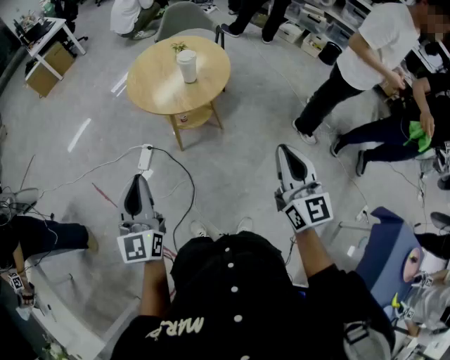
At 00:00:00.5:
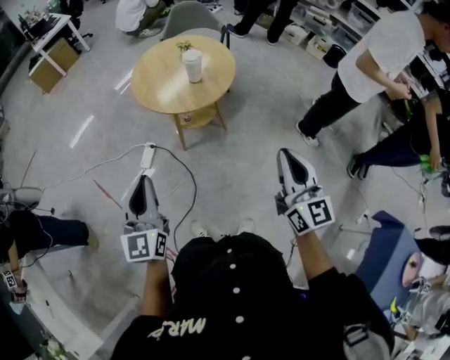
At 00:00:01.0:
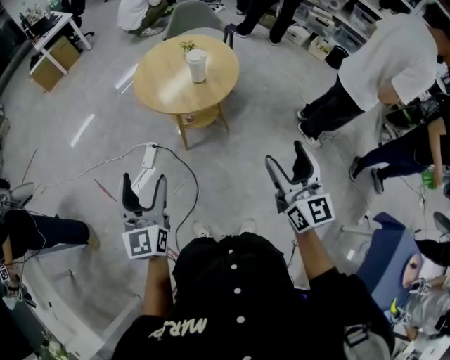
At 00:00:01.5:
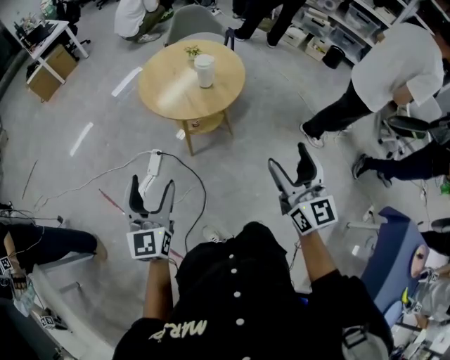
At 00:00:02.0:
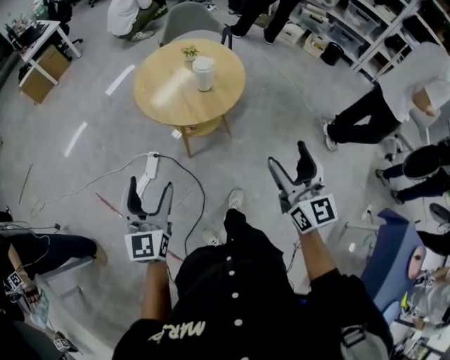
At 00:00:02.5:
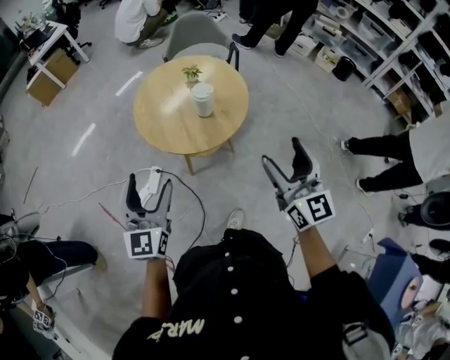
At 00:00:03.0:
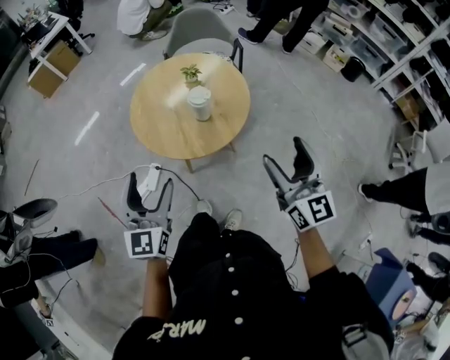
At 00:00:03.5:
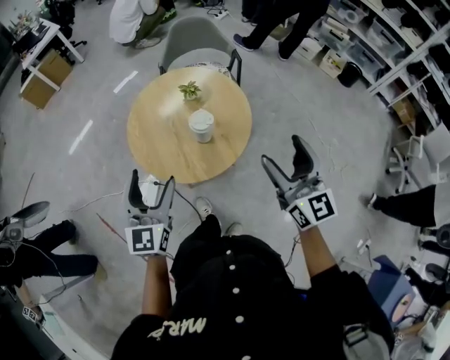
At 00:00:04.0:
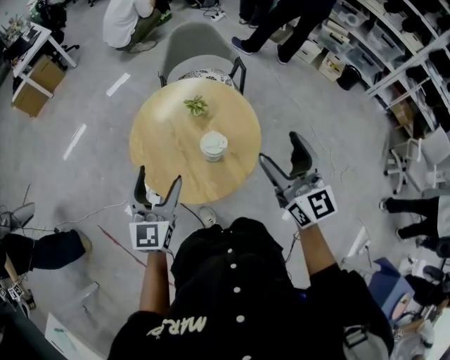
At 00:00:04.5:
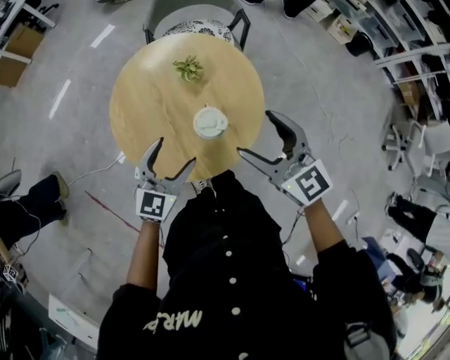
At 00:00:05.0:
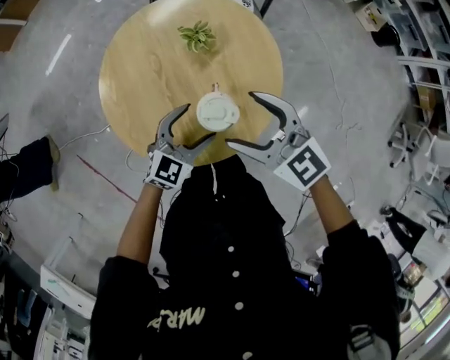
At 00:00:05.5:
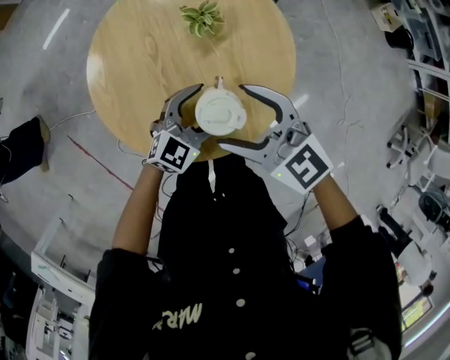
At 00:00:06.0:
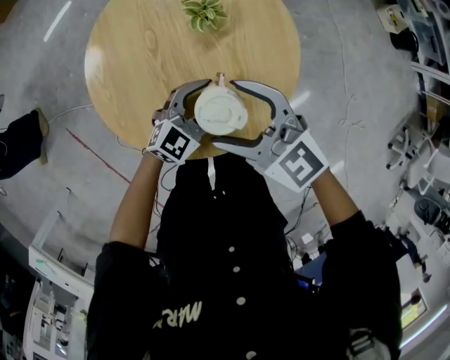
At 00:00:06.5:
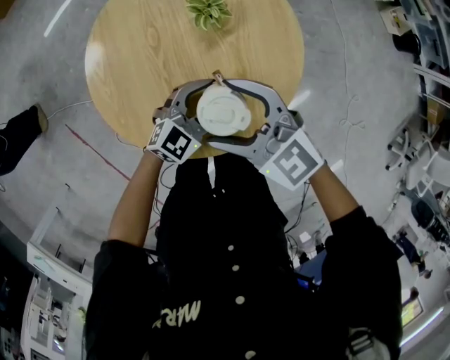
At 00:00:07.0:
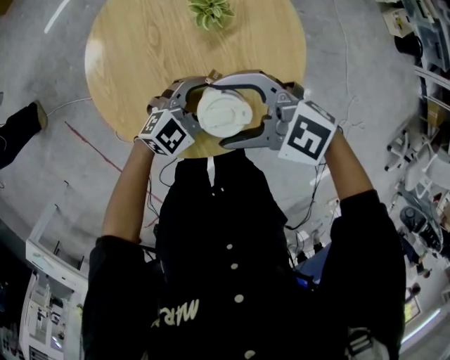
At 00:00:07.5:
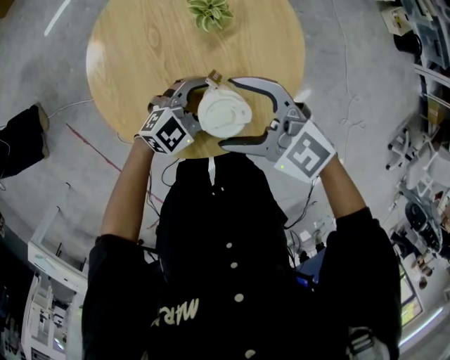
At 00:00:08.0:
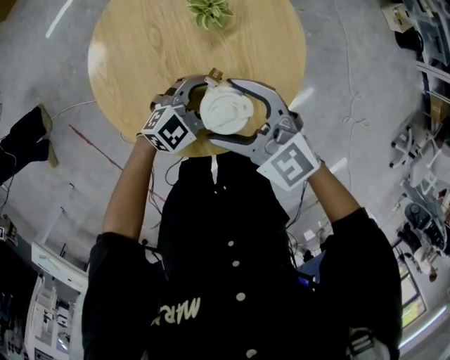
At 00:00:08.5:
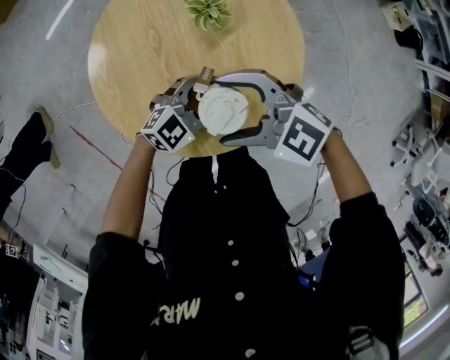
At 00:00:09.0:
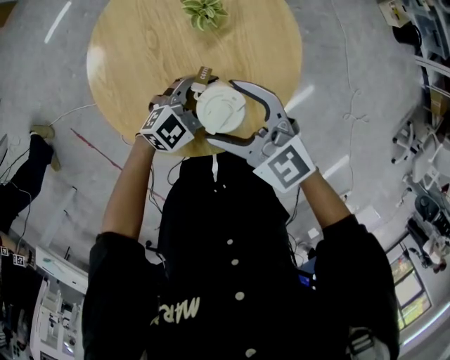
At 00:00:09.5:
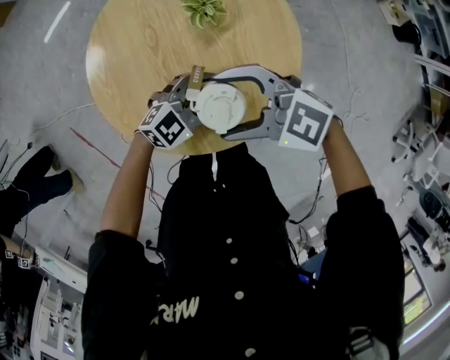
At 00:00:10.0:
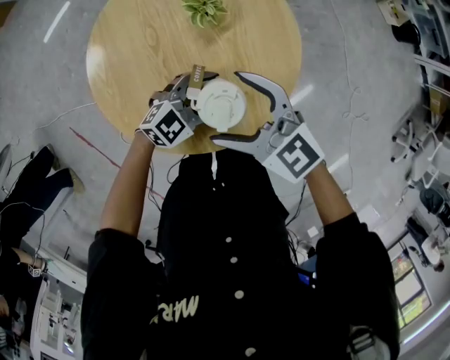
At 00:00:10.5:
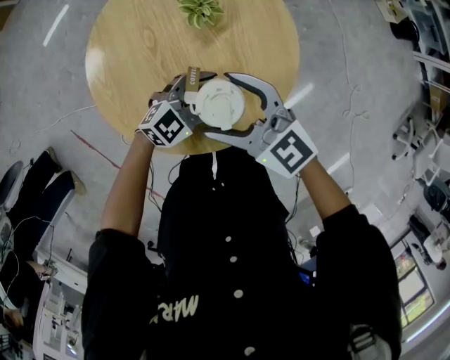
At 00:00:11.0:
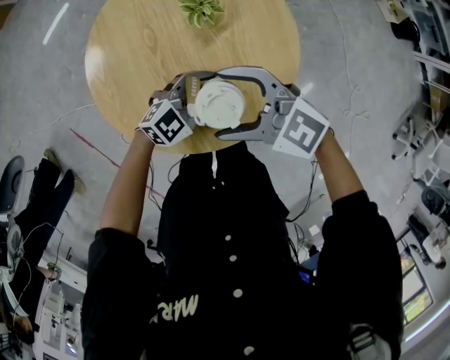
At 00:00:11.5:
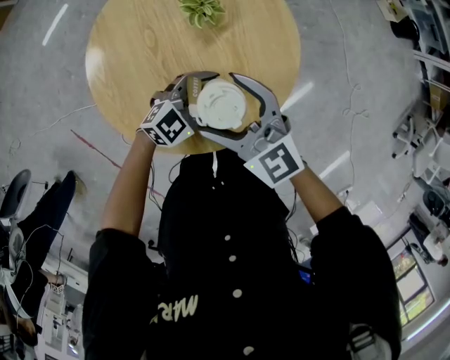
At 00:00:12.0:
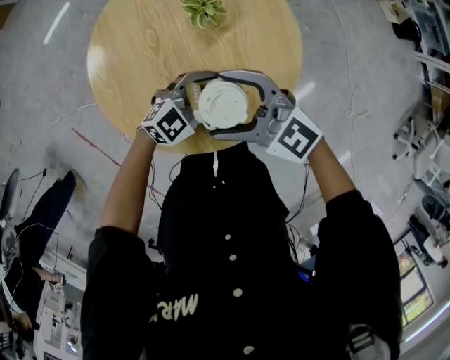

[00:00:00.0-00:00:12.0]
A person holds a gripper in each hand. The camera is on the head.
00:00:00.0 to 00:00:02.0: The right gripper shifts some 10 cm forward and to the left, and opens its fingers. Meanwhile the left gripper moves forward, to the left and downward, about 15 cm, and opens up.
00:00:02.0 to 00:00:04.0: The pair of grippers is taken forward, some 40 cm.
00:00:04.0 to 00:00:06.0: The left gripper heads downward and to the right, covering about 40 cm, and rotates roughly 40 degrees, while the right gripper heads downward, to the left and forward, covering roughly 35 cm, and swivels roughly 50 degrees.
00:00:10.0 to 00:00:12.0: The right gripper changes its angle by approximately 20 degrees.

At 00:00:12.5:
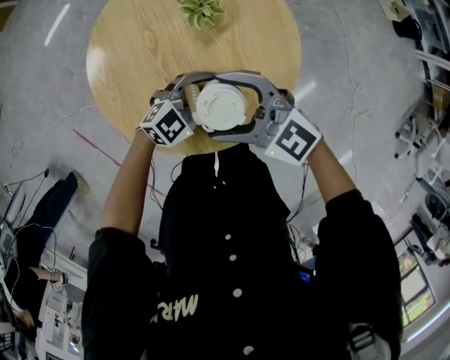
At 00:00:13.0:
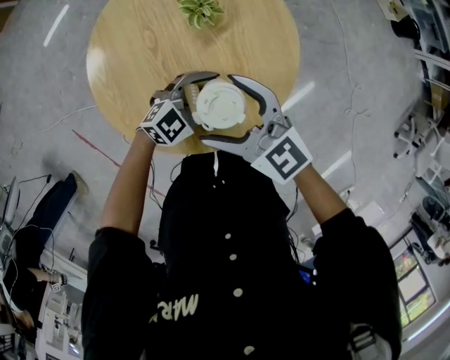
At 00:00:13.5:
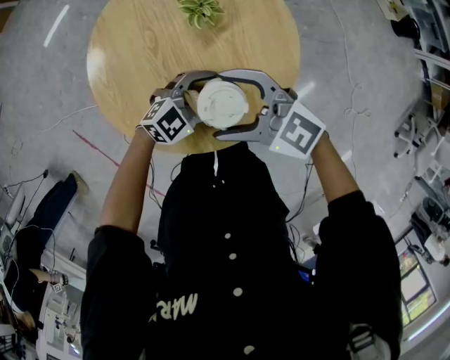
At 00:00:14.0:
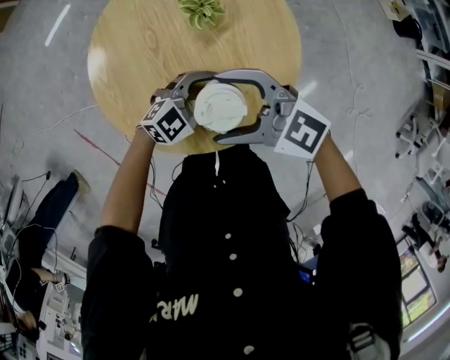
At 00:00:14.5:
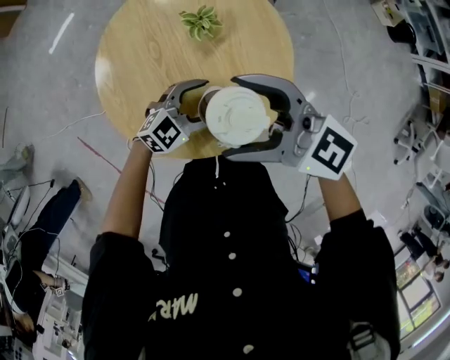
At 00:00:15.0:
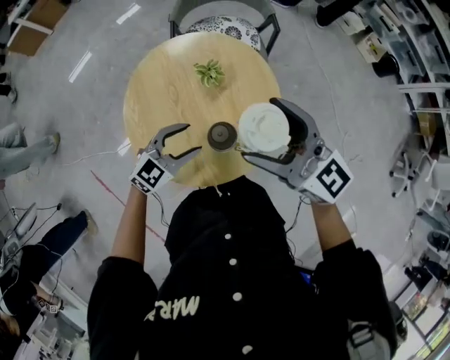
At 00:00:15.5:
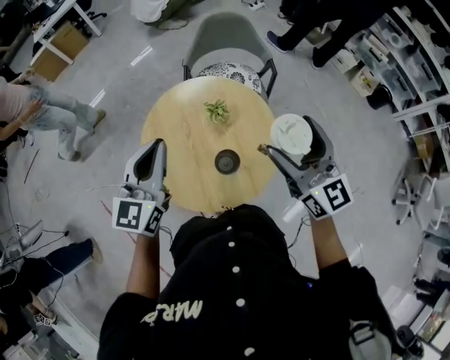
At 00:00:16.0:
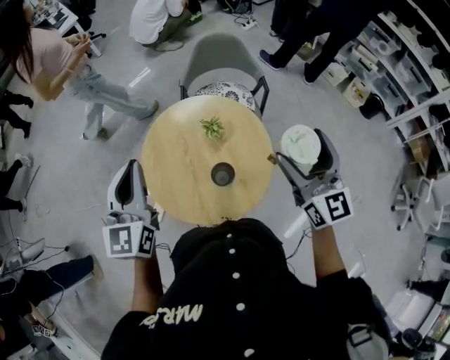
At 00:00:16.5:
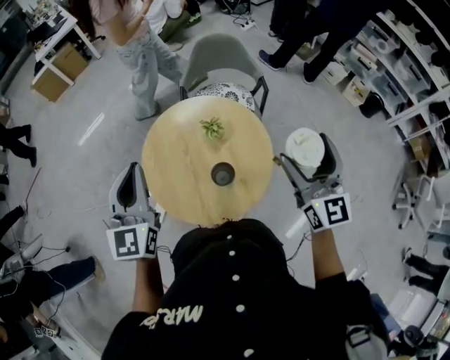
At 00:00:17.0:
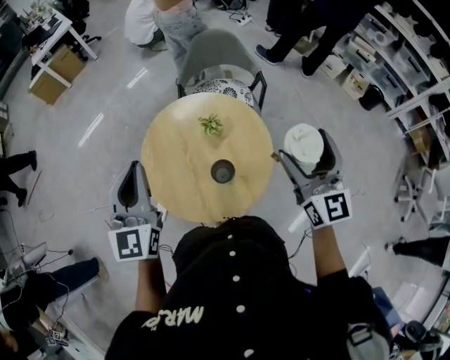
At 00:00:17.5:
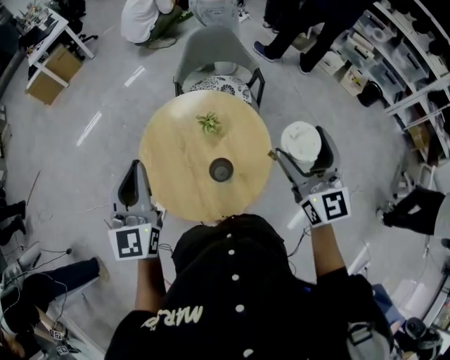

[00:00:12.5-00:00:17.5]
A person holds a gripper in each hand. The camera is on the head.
00:00:12.5 to 00:00:15.0: The grippers both shift upward by some 20 cm. The right gripper turns by about 30 degrees.
00:00:15.0 to 00:00:17.5: The left gripper moves upward, roughly 30 cm, swivels about 50 degrees, and closes. The right gripper heads to the right and upward, covering approximately 15 cm, and turns by roughly 40 degrees.

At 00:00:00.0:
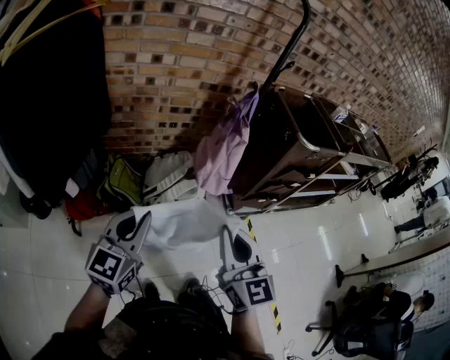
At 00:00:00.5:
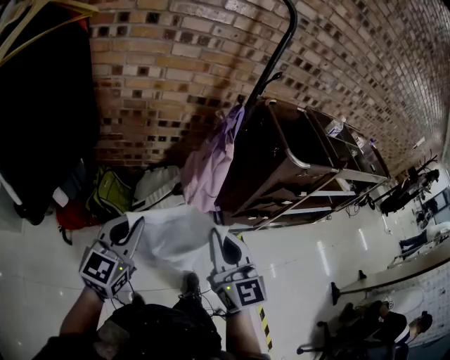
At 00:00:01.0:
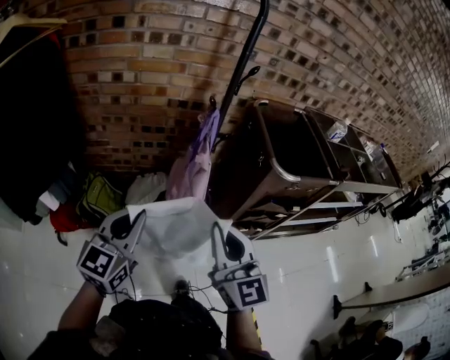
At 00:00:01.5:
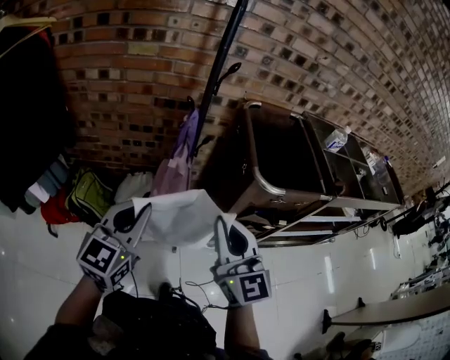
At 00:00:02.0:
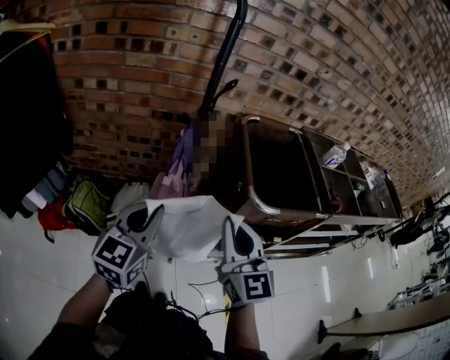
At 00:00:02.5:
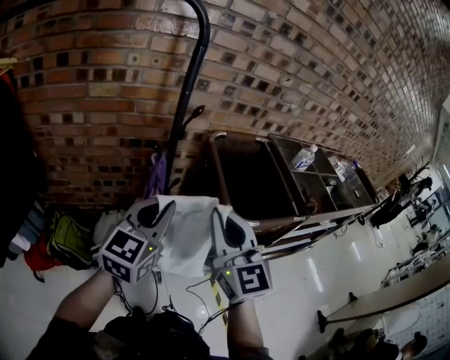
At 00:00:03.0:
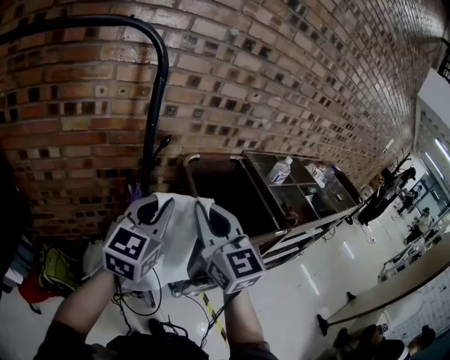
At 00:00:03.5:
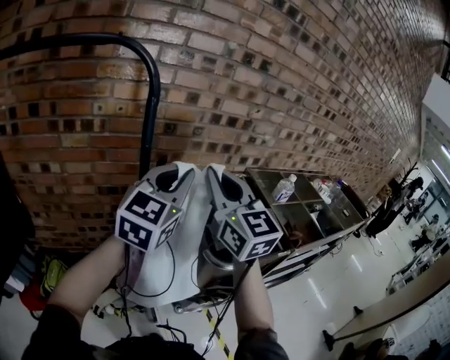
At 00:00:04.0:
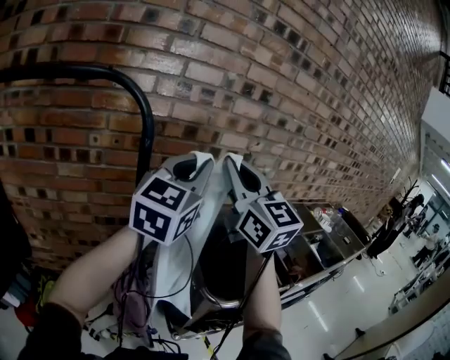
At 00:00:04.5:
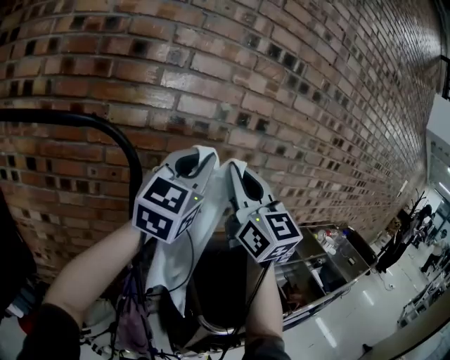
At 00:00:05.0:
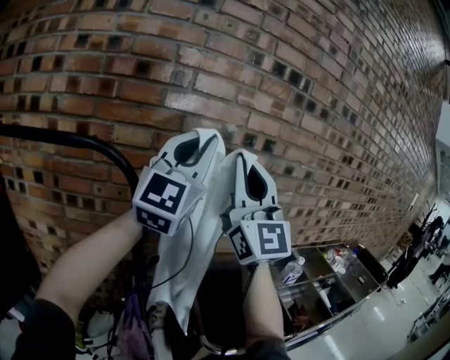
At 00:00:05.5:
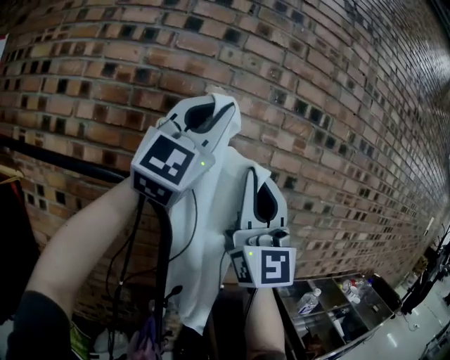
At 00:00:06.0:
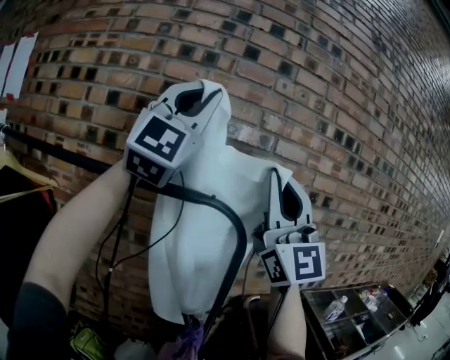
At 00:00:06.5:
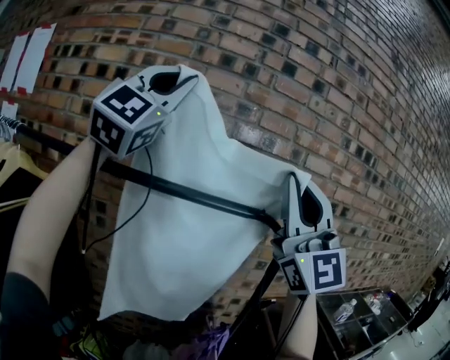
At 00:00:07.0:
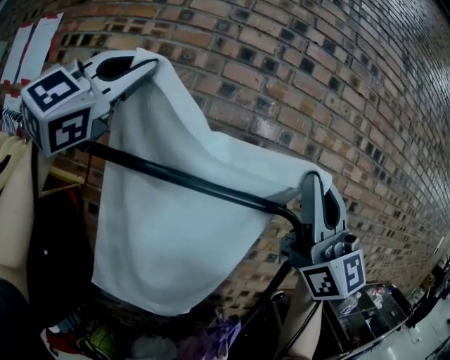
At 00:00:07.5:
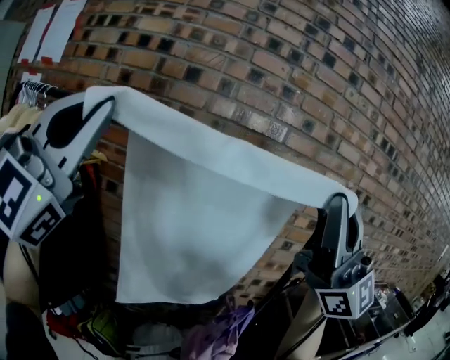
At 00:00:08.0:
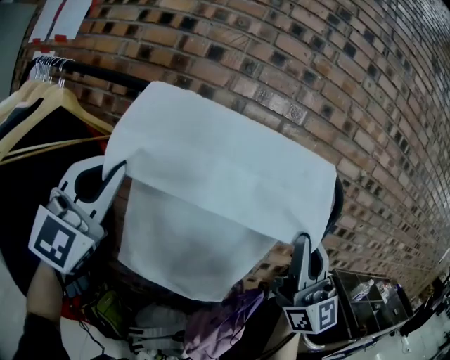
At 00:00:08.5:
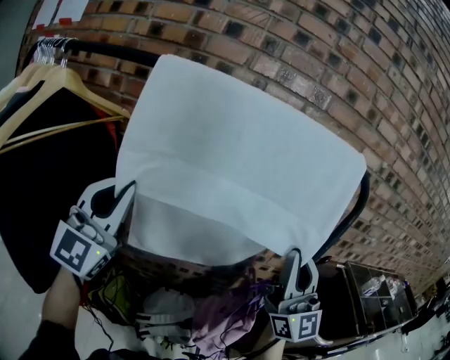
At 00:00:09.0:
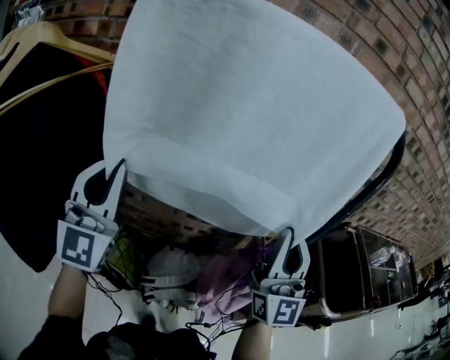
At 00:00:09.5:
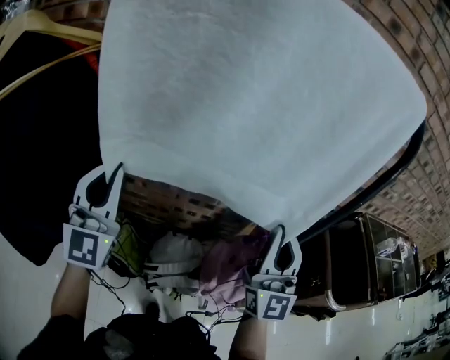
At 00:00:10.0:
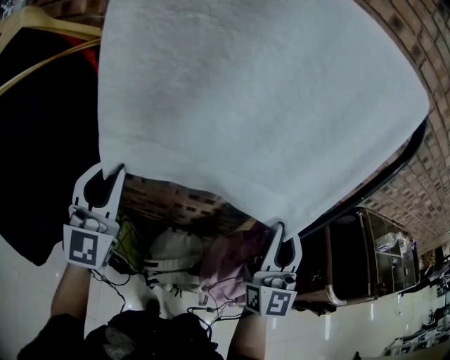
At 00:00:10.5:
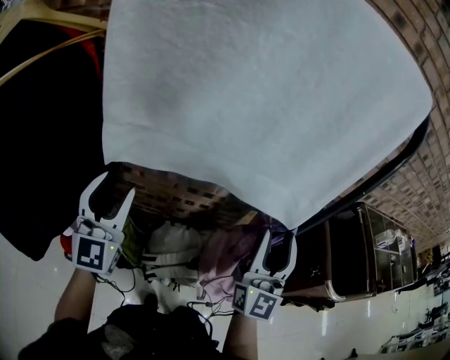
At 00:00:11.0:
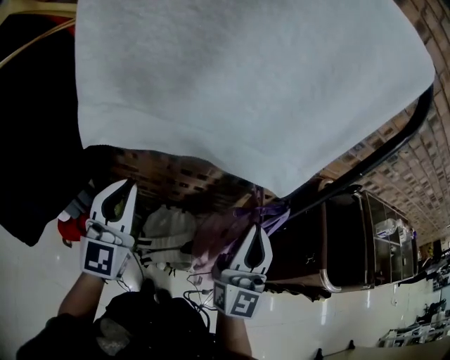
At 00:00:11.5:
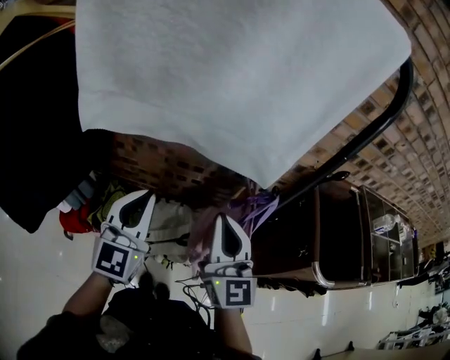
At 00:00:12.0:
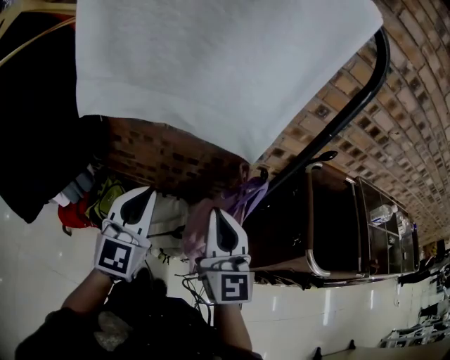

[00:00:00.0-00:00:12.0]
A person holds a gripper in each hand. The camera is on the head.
00:00:00.0 to 00:00:02.0: Both grippers are carried to the right and forward, roughly 50 cm.
00:00:02.0 to 00:00:04.0: The left gripper shifts approximately 50 cm upward, forward and to the right, and turns by approximately 30 degrees. Meanwhile the right gripper goes approximately 40 cm upward and forward.
00:00:04.0 to 00:00:06.0: The left gripper goes approximately 50 cm upward and to the left, and rotates around the line of its fingers by approximately 50 degrees, clockwise from behind. The right gripper goes about 30 cm upward and to the left, and tips its fingers upward by roughly 30 degrees.
00:00:06.0 to 00:00:08.0: The left gripper shifts approximately 50 cm to the left and downward. The right gripper moves downward and to the left, about 25 cm.
00:00:08.0 to 00:00:10.0: The two grippers go some 25 cm downward. The left gripper rotates roughly 20 degrees. The right gripper turns by about 20 degrees.
00:00:10.0 to 00:00:12.0: The left gripper shifts about 25 cm to the right, backward and downward, rotates about 20 degrees, and opens, then closes once more; the right gripper goes approximately 15 cm downward and backward, changes its angle by roughly 30 degrees, and opens, then closes once more.
